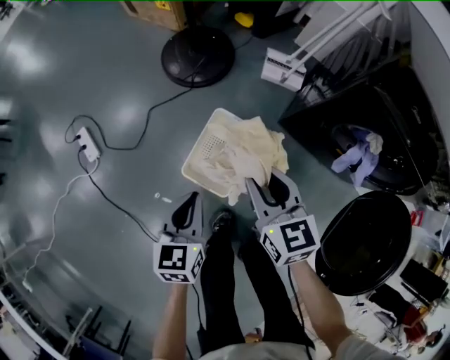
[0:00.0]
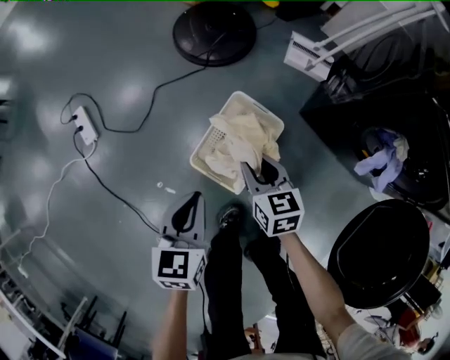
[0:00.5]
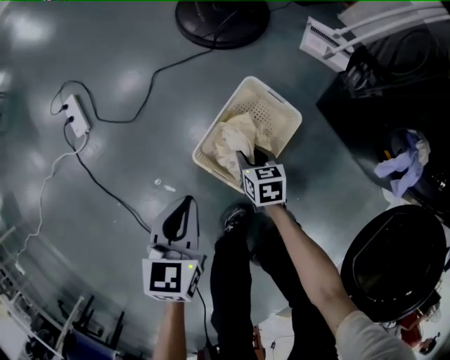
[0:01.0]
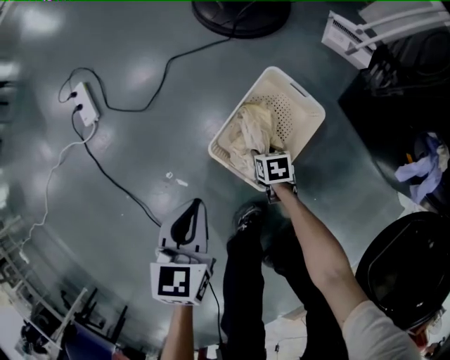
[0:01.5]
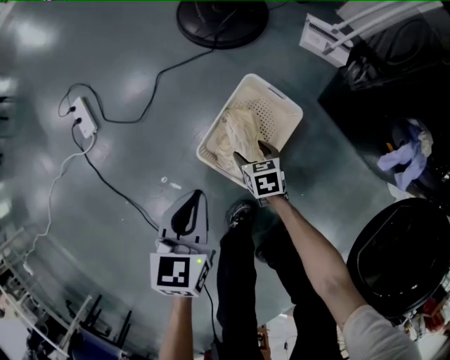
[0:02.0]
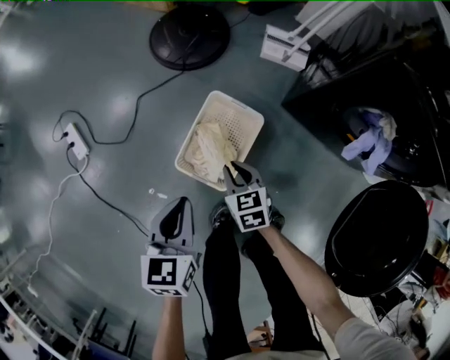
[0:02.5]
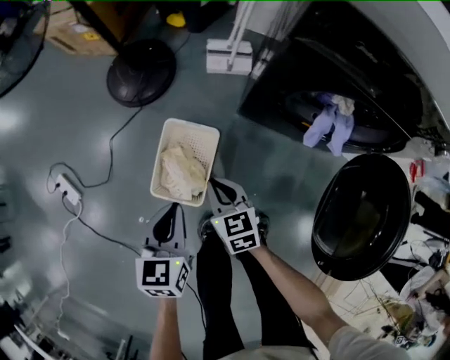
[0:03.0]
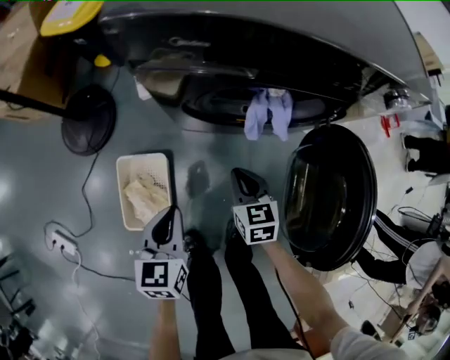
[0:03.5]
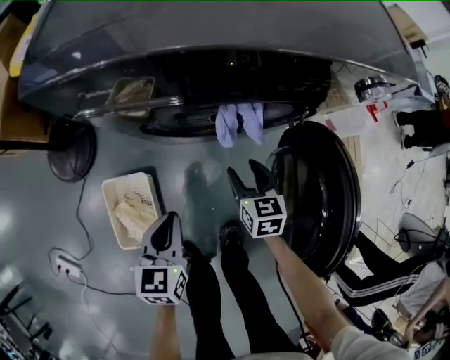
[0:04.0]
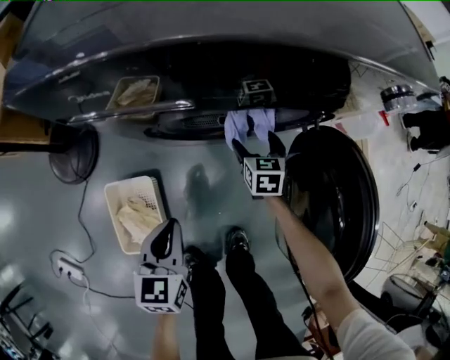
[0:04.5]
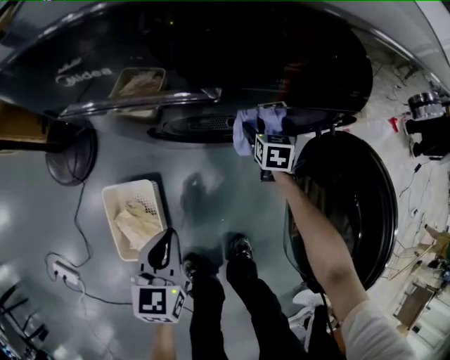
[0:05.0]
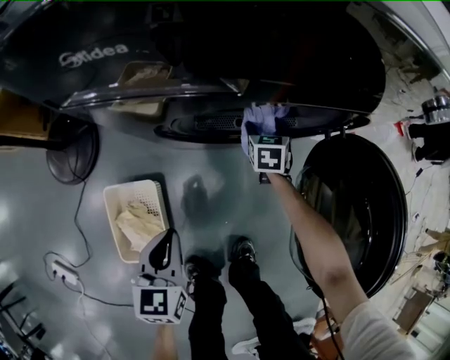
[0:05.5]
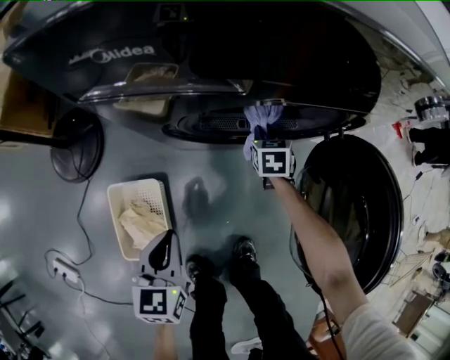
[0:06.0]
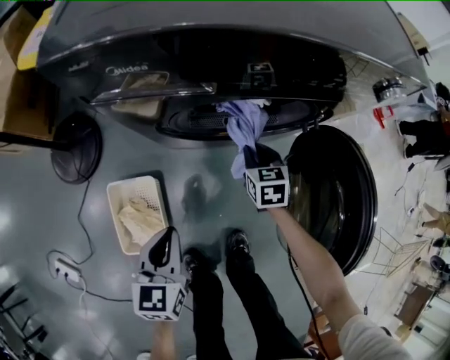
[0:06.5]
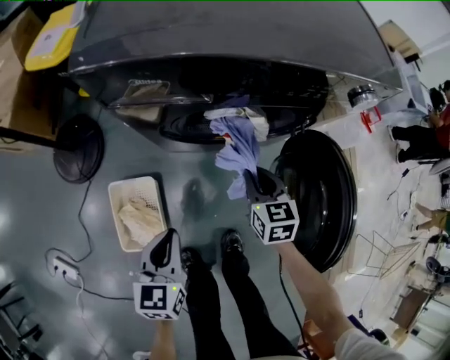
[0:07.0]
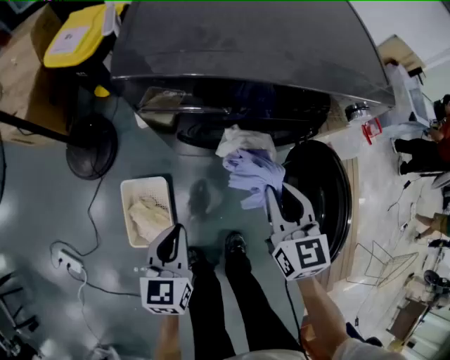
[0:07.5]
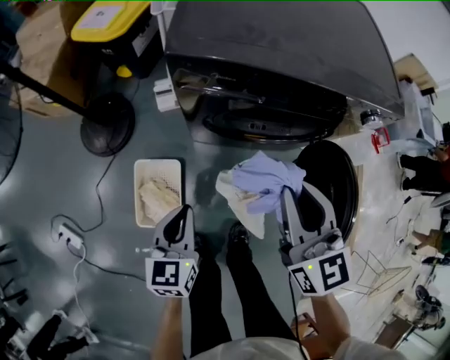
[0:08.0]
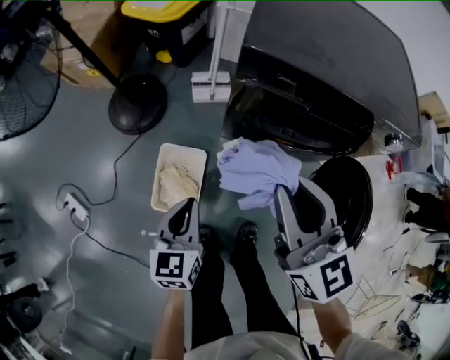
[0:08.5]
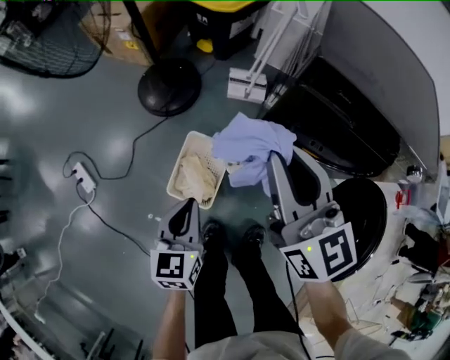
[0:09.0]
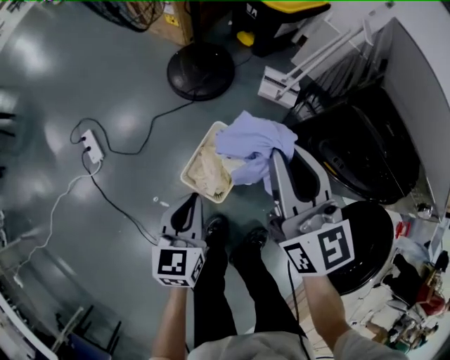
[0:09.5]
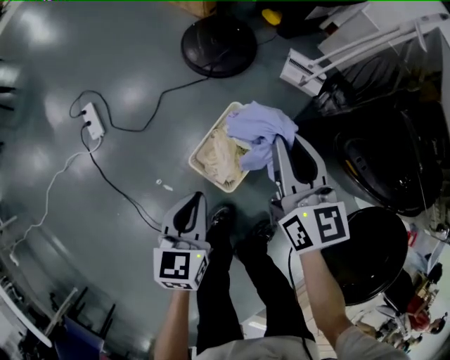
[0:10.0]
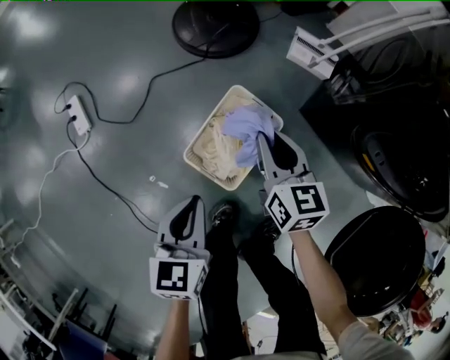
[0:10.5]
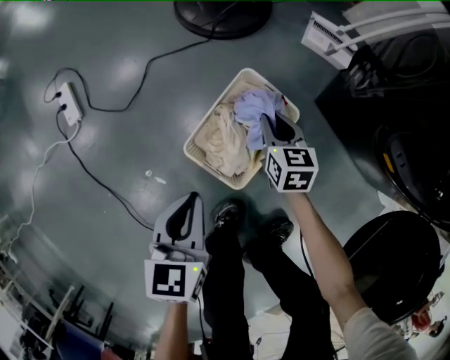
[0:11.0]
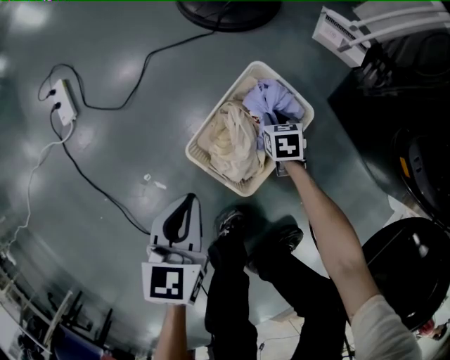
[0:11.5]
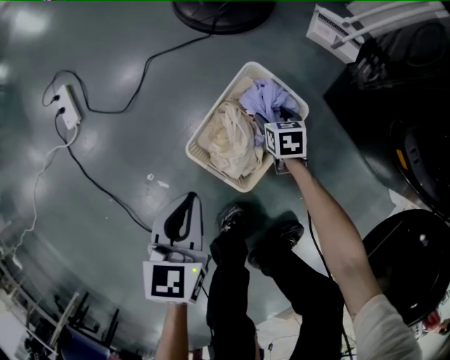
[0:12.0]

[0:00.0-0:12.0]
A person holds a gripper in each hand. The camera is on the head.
0:00.0 to 0:02.0: The left gripper travels downward and to the left by approximately 15 cm, while the right gripper is displaced downward by approximately 40 cm, changes its angle by roughly 30 degrees, and opens its fingers.
0:02.0 to 0:04.0: The two grippers travel together, approximately 50 cm. The right gripper changes its angle by roughly 60 degrees, and closes, then opens again. Meanwhile the left gripper changes its angle by some 40 degrees.
0:04.0 to 0:06.0: The left gripper goes about 10 cm to the left and downward. The right gripper heads forward and downward, covering approximately 20 cm, and opens, then closes again.
0:06.0 to 0:08.0: The right gripper moves upward and backward, some 50 cm, and angles its fingers upward, by about 30 degrees; the left gripper is displaced upward by approximately 20 cm.
0:08.0 to 0:10.0: The right gripper moves some 40 cm, and changes its angle by roughly 30 degrees, while the left gripper ends up some 30 cm from where it was, and changes its angle by about 40 degrees.
0:10.0 to 0:12.0: The left gripper moves downward, roughly 20 cm. Meanwhile the right gripper is displaced downward by approximately 50 cm, angles its fingers downward, by roughly 40 degrees, and opens.

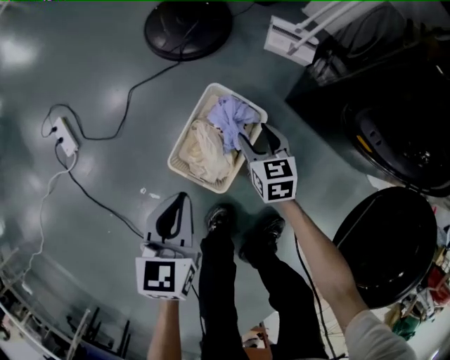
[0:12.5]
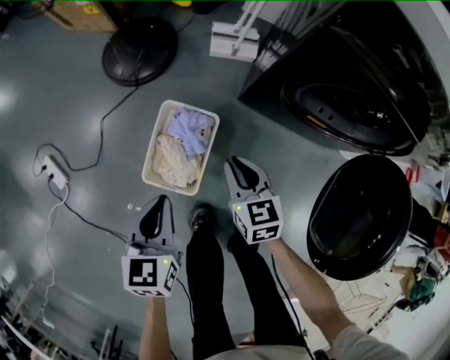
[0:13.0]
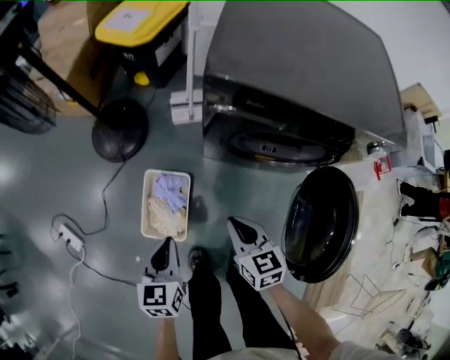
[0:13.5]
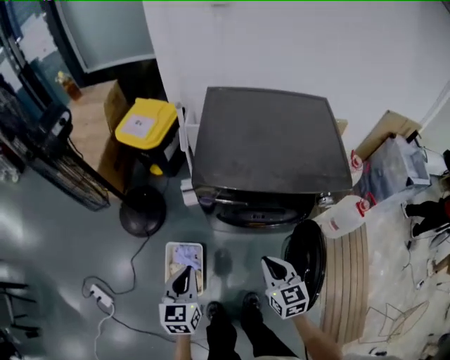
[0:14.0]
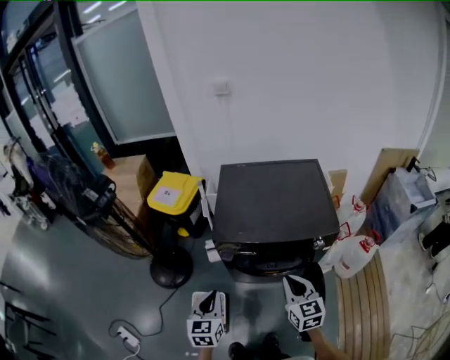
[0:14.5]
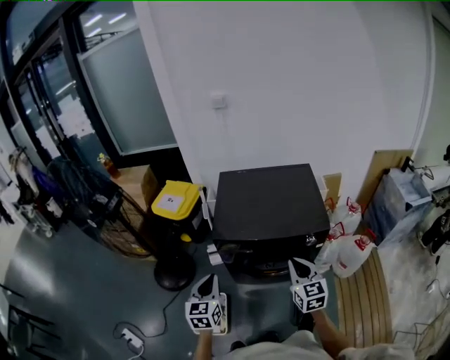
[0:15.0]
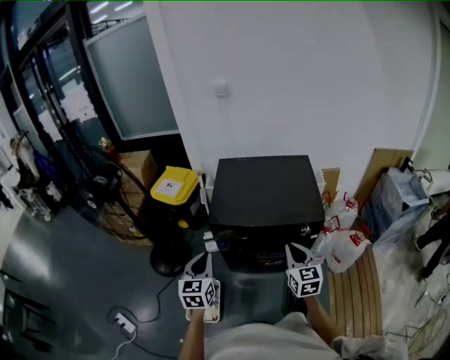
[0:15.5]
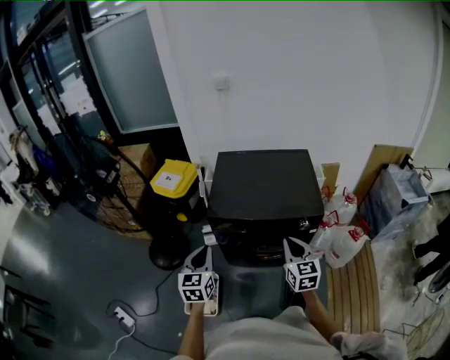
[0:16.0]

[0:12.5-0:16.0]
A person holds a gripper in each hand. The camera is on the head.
0:12.5 to 0:14.5: Both grippers move upward, roughly 60 cm. The left gripper changes its angle by roughly 30 degrees. Meanwhile the right gripper changes its angle by some 40 degrees, and closes.
0:14.5 to 0:16.0: The left gripper heads upward, covering some 10 cm. Meanwhile the right gripper goes some 10 cm to the right and upward.

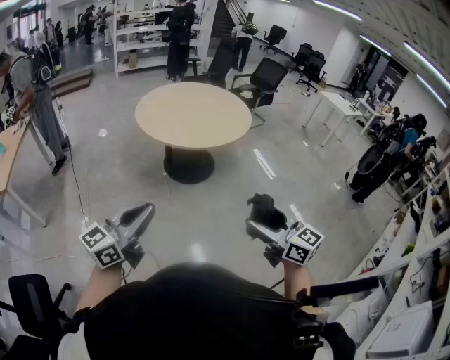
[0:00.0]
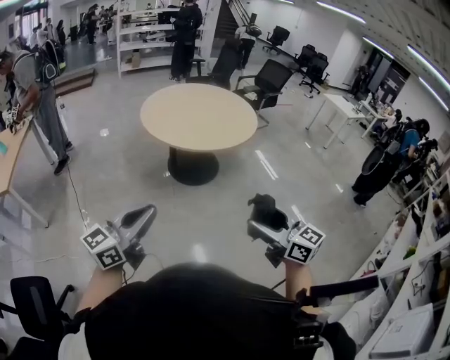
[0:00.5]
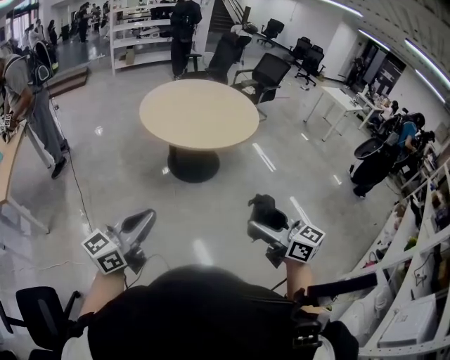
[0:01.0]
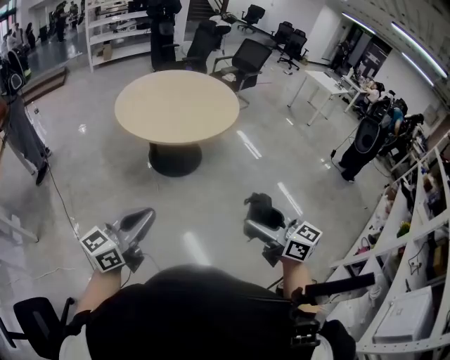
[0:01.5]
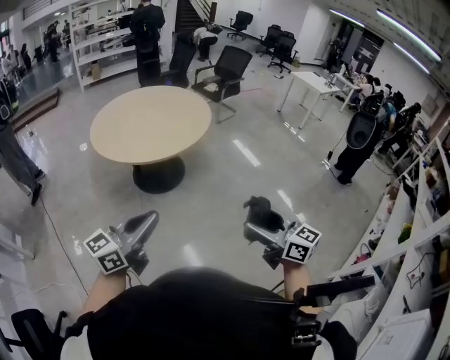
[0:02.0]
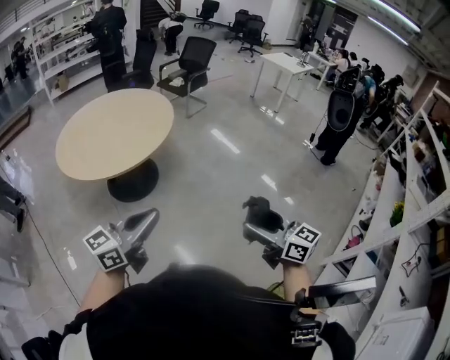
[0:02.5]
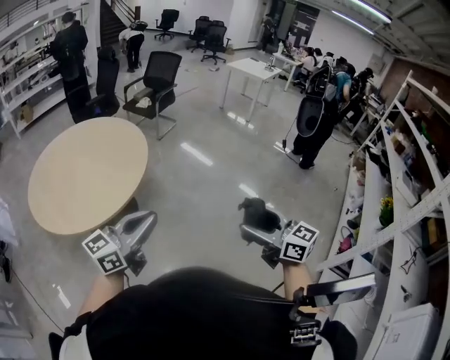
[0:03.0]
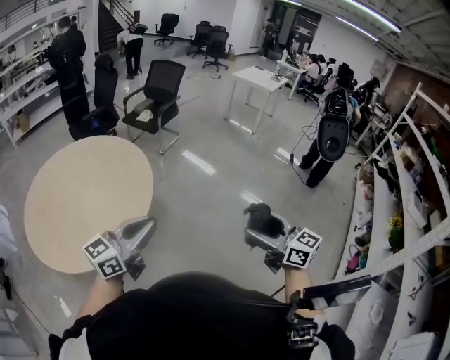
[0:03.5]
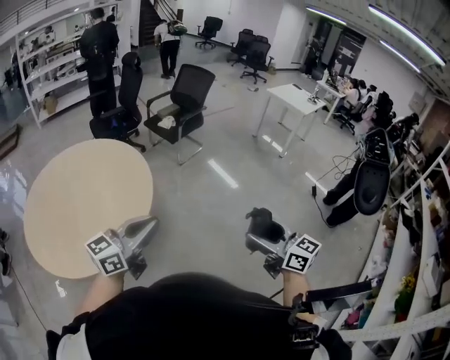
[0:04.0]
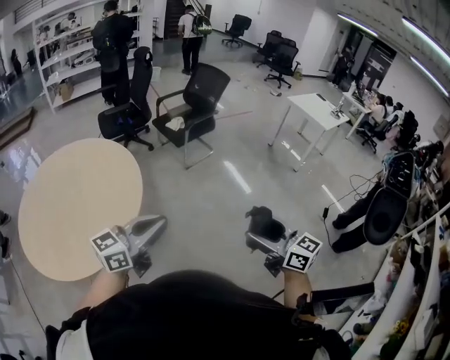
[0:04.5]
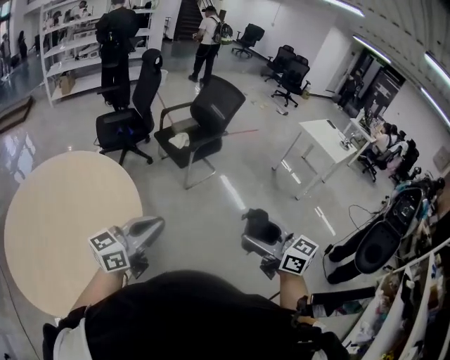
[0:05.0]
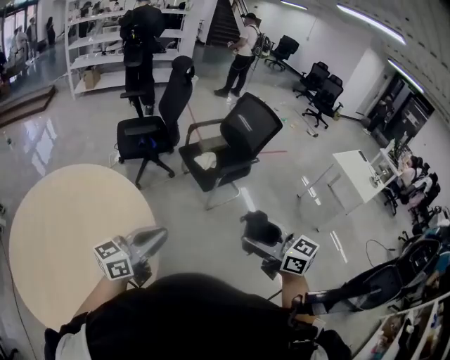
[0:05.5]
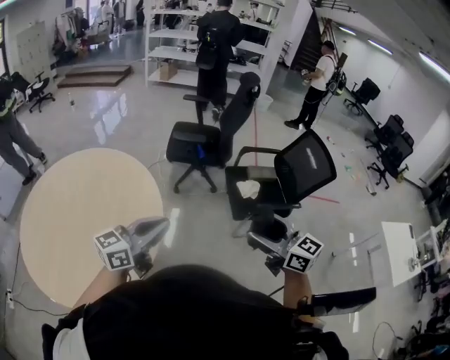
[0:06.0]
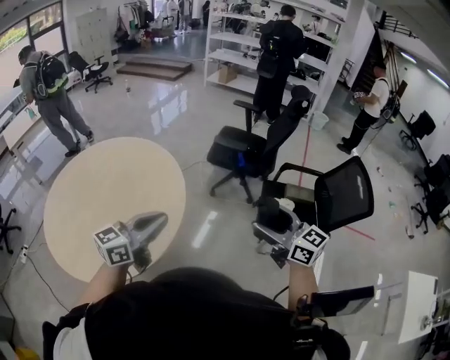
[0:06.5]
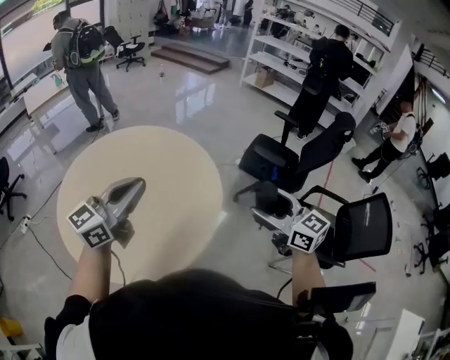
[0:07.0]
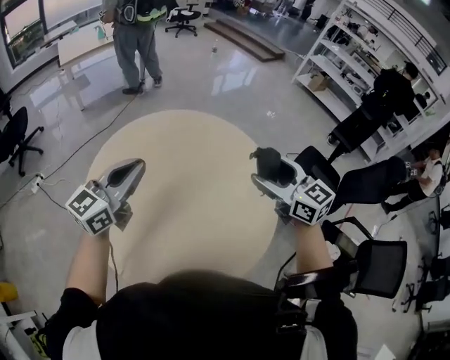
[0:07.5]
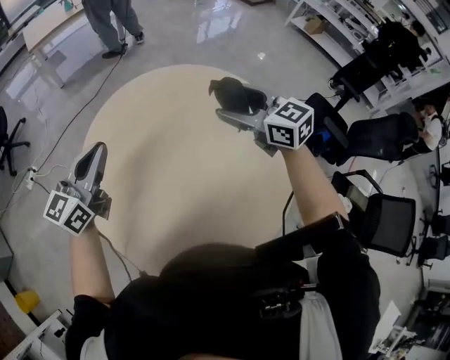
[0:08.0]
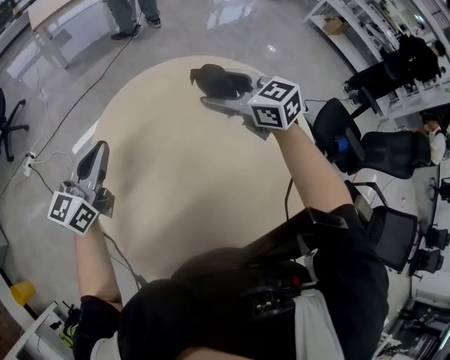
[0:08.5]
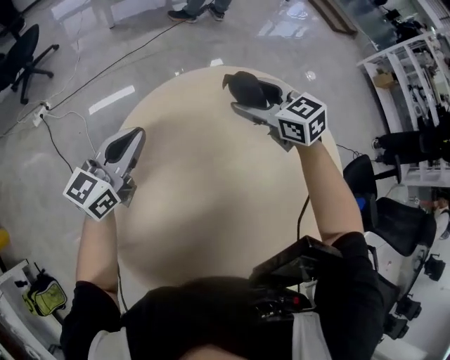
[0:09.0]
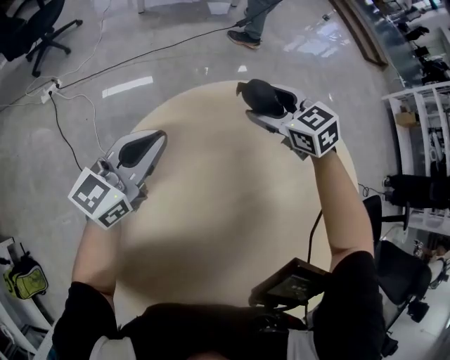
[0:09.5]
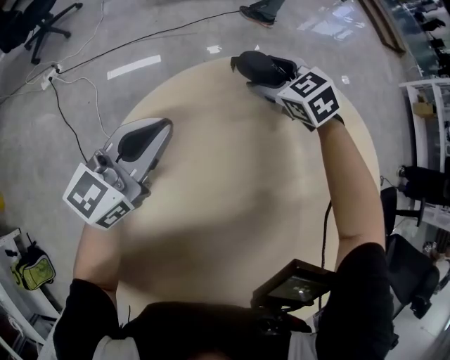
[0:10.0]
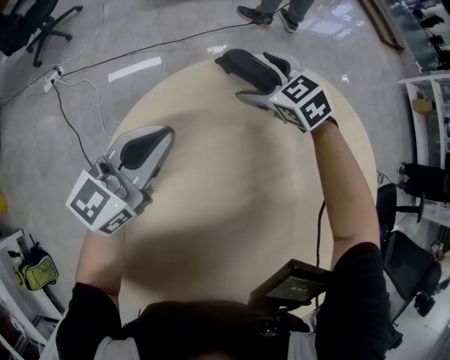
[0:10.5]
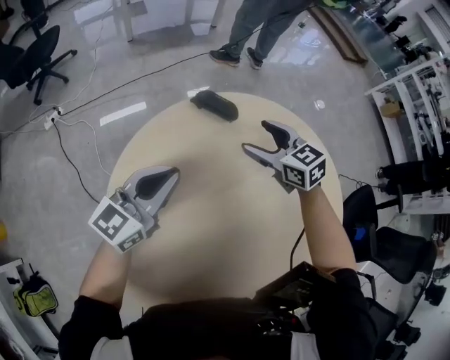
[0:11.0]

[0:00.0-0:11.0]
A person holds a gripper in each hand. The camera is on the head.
0:00.0 to 0:02.0: The grippers both shift to the right and forward by some 25 cm.
0:02.0 to 0:03.5: Both grippers are carried forward, approximately 50 cm.
0:03.5 to 0:05.5: Both grippers are carried roughly 70 cm. The right gripper turns by roughly 30 degrees; the left gripper turns by some 30 degrees.
0:05.5 to 0:07.5: The two grippers travel together, about 50 cm. The left gripper swivels some 80 degrees. The right gripper turns by roughly 60 degrees.
0:07.5 to 0:09.0: The left gripper shifts about 40 cm forward, downward and to the left, and changes its angle by about 20 degrees. Meanwhile the right gripper goes some 50 cm forward, to the left and downward, and changes its angle by some 30 degrees.
0:09.0 to 0:11.0: The left gripper moves backward, approximately 5 cm, and goes downward and returns, about 10 cm each way. Meanwhile the right gripper reaches some 20 cm downward, then returns.
